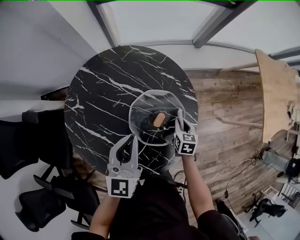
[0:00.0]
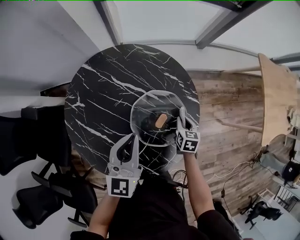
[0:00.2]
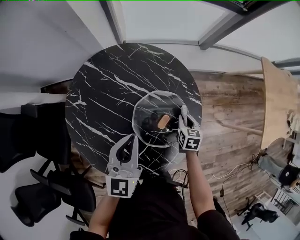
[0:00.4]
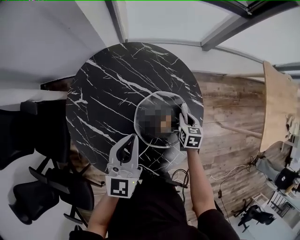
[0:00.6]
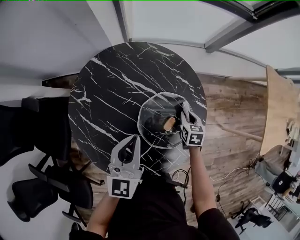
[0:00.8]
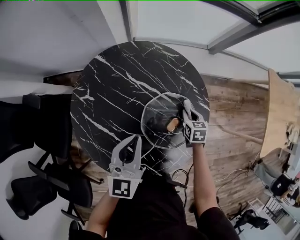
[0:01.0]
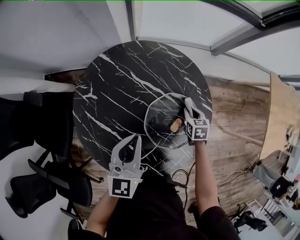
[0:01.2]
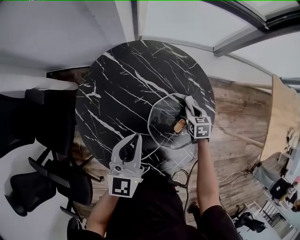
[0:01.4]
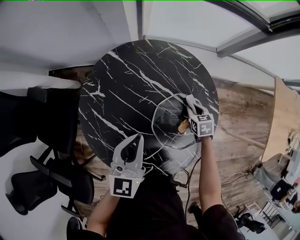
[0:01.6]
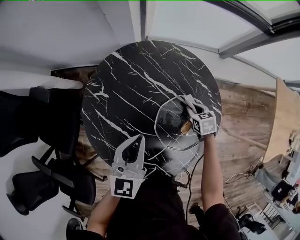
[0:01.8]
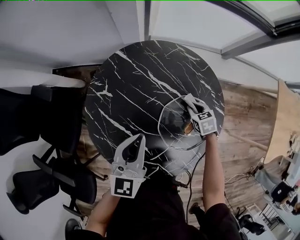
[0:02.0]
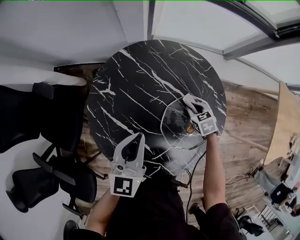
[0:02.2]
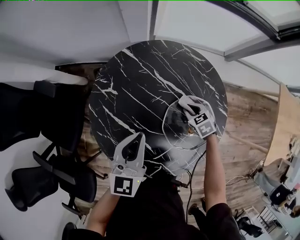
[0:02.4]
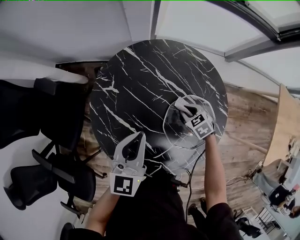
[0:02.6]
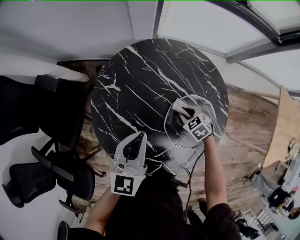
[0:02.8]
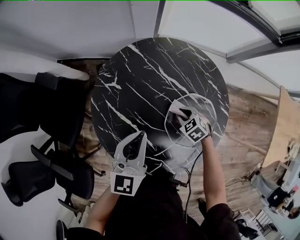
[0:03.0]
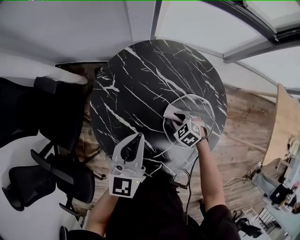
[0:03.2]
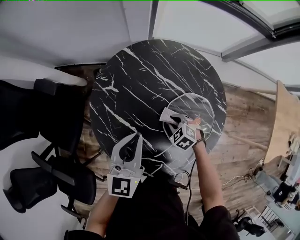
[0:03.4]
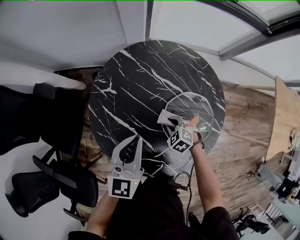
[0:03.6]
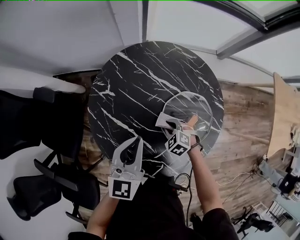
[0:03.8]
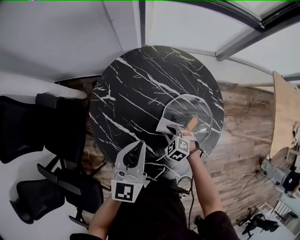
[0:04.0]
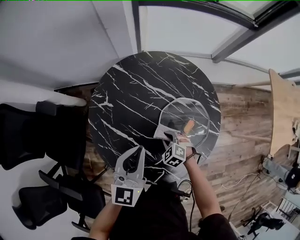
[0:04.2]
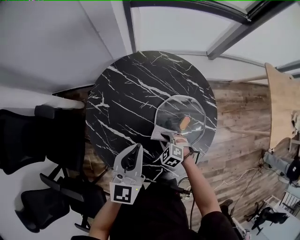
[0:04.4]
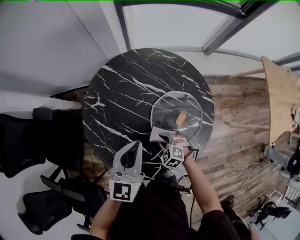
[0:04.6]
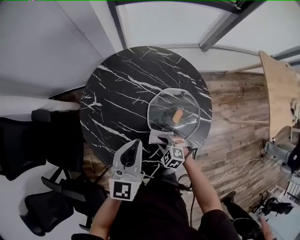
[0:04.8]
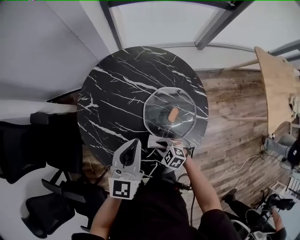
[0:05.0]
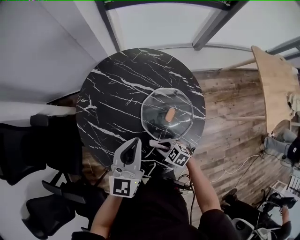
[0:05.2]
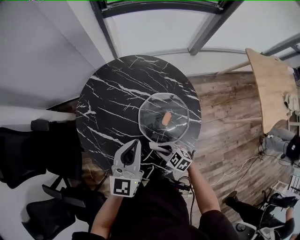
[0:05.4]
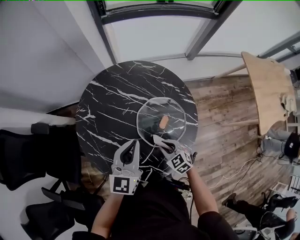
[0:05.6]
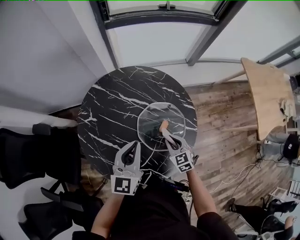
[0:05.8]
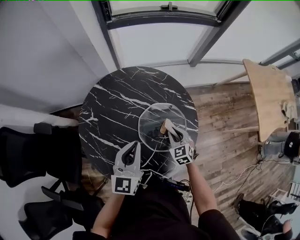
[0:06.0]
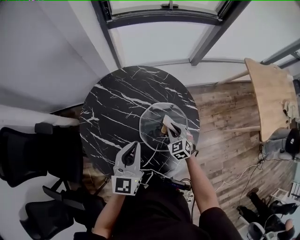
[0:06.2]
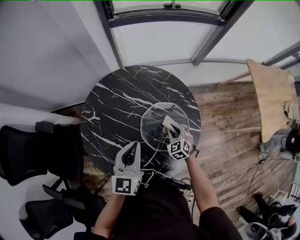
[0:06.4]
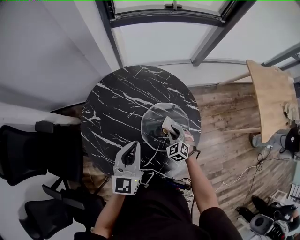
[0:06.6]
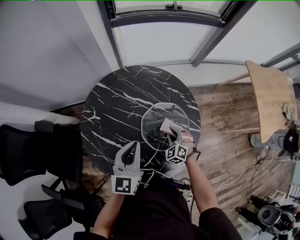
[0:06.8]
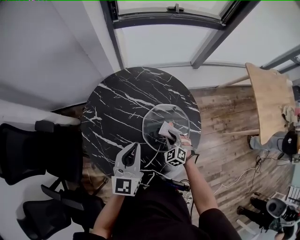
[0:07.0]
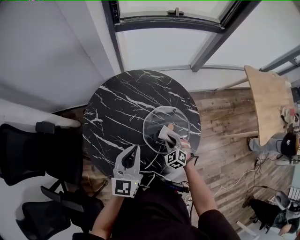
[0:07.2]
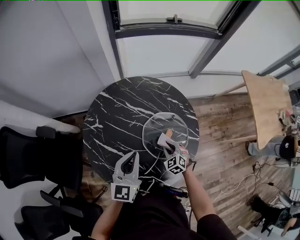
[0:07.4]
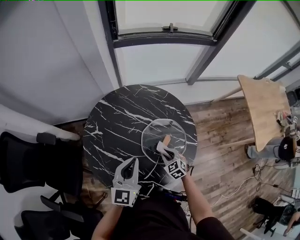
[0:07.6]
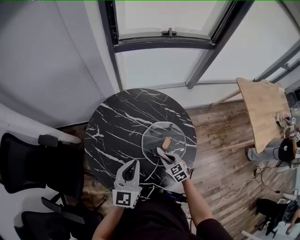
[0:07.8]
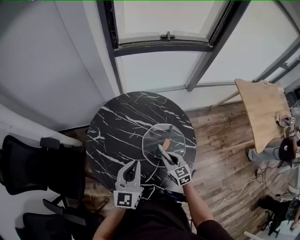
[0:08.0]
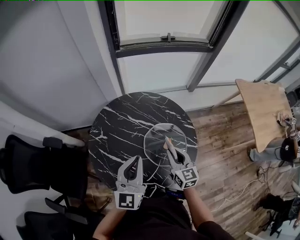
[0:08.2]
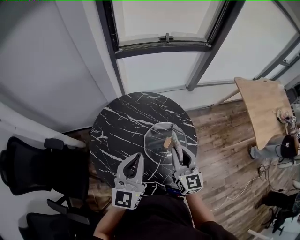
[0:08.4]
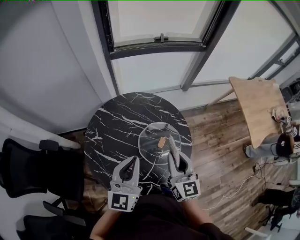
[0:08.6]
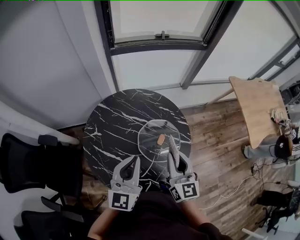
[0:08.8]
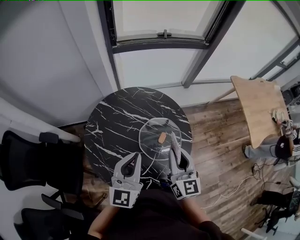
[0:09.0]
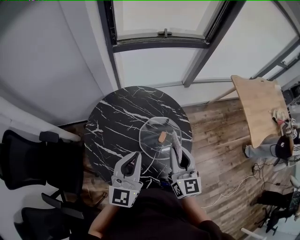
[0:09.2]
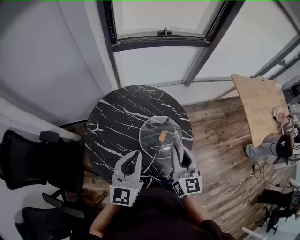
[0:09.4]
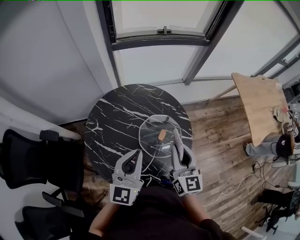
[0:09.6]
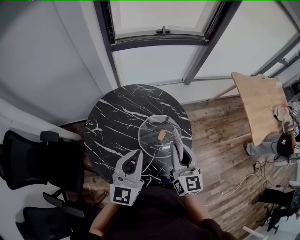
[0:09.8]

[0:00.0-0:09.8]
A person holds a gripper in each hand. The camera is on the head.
0:00.0 to 0:01.4: The left gripper heads to the left, covering about 10 cm, while the right gripper moves forward and to the left, about 10 cm, and swivels some 20 degrees.
0:01.4 to 0:02.8: The left gripper shifts about 5 cm to the left, while the right gripper moves to the left, about 15 cm, and swivels roughly 40 degrees.
0:02.8 to 0:04.2: The left gripper moves roughly 5 cm, while the right gripper heads backward and to the left, covering about 10 cm.
0:04.2 to 0:05.6: The left gripper heads to the right, covering roughly 10 cm. The right gripper moves upward, to the right and backward, about 15 cm, and swivels approximately 30 degrees.
0:05.6 to 0:07.0: The right gripper travels forward by approximately 10 cm, and swivels some 30 degrees.
0:07.0 to 0:08.4: The right gripper shifts approximately 30 cm upward, and tips its fingers upward by approximately 40 degrees, while the left gripper moves upward, some 15 cm.
0:08.4 to 0:09.8: There are only small adjustments of the grippers.

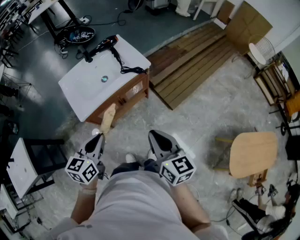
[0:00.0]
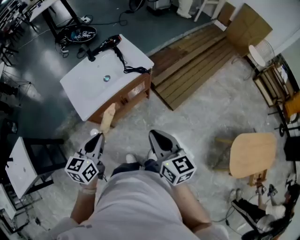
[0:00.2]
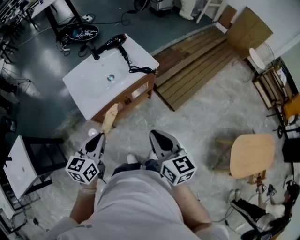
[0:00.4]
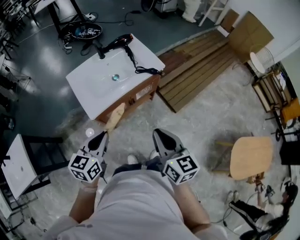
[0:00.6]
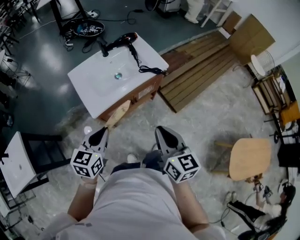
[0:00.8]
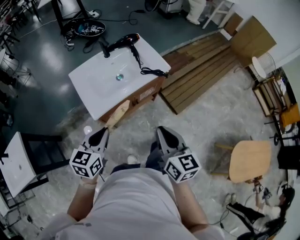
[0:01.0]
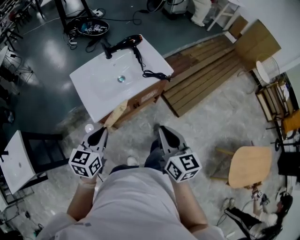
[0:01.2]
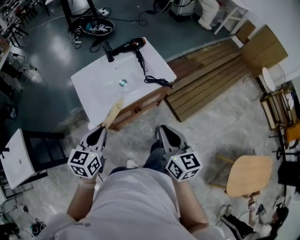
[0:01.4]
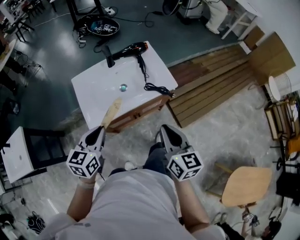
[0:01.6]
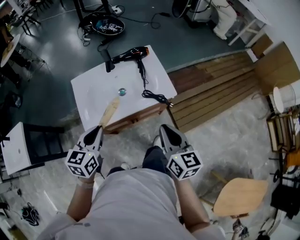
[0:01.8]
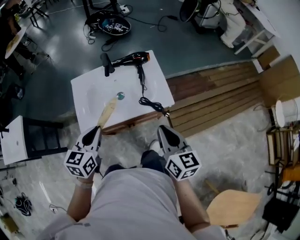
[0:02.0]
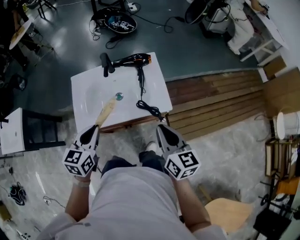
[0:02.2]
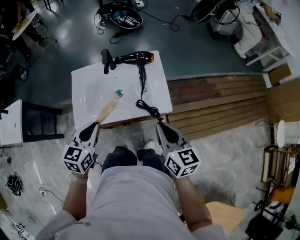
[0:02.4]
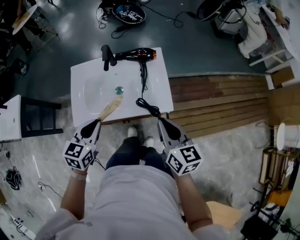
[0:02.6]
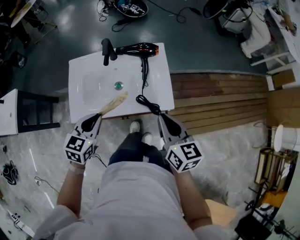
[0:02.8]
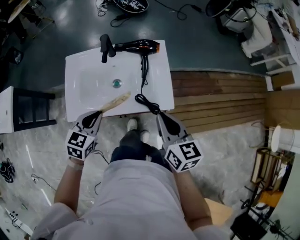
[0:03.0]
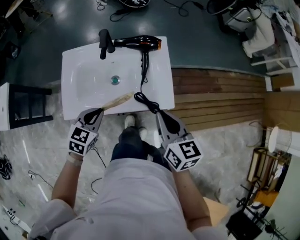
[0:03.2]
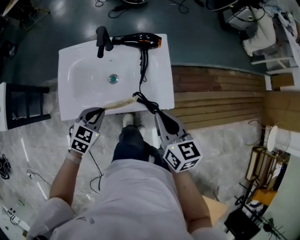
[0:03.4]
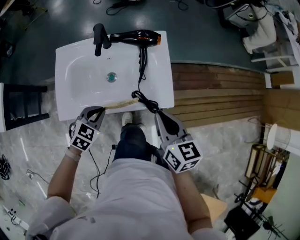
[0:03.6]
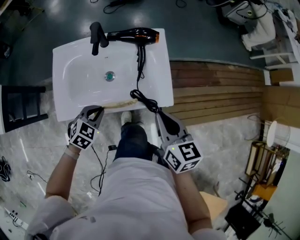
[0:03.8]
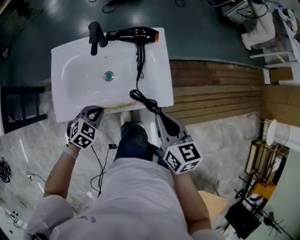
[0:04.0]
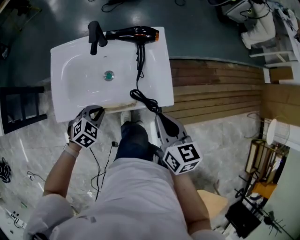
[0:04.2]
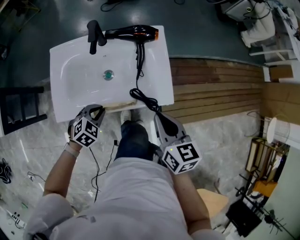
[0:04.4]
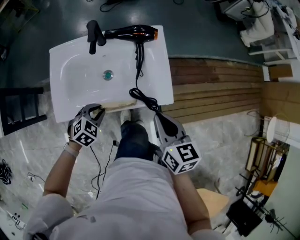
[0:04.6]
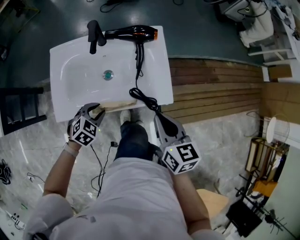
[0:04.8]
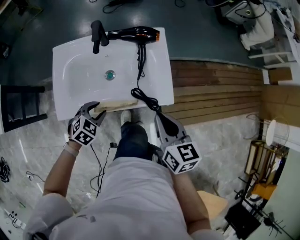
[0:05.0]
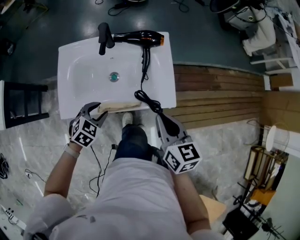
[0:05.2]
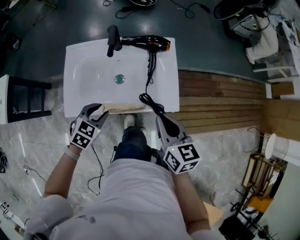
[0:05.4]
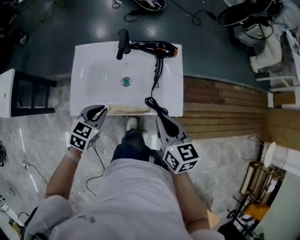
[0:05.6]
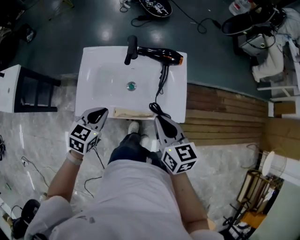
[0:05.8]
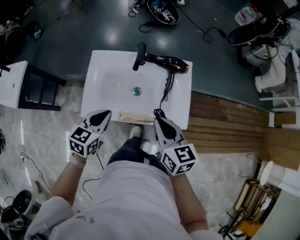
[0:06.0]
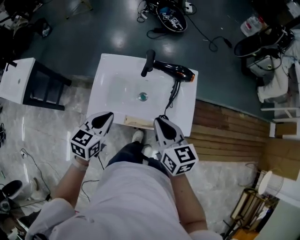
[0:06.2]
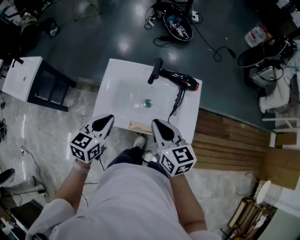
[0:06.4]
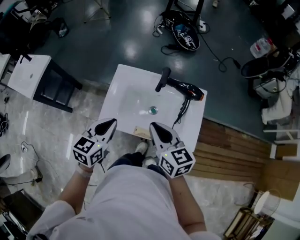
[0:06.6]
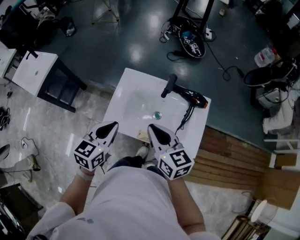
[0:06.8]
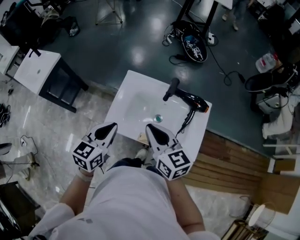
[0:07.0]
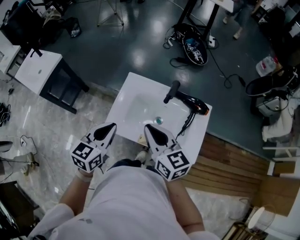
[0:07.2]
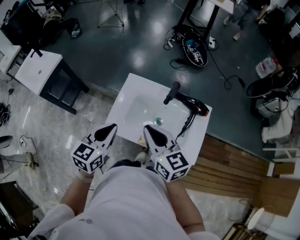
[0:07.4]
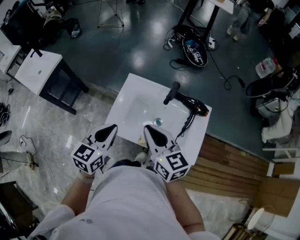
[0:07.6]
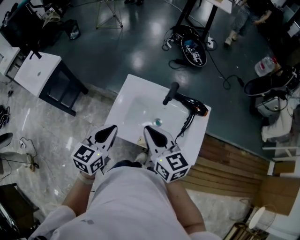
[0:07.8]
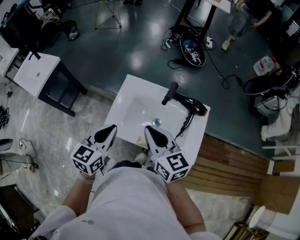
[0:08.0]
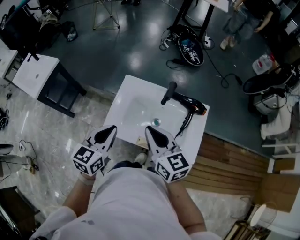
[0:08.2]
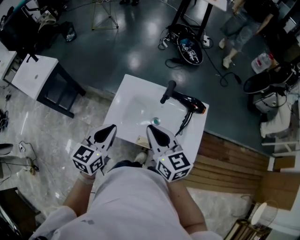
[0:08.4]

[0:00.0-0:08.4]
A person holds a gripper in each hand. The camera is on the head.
0:00.0 to 0:01.4: The left gripper travels to the left and forward by roughly 15 cm, while the right gripper is displaced forward and to the left by roughly 15 cm.
0:01.4 to 0:02.8: Both grippers move forward and to the right, approximately 25 cm. The right gripper swivels about 30 degrees.
0:02.8 to 0:04.2: The left gripper shifts approximately 20 cm downward, and swivels approximately 40 degrees. Meanwhile the right gripper goes about 5 cm downward.
0:04.2 to 0:05.6: The right gripper heads to the left, covering some 5 cm. Meanwhile the left gripper moves upward, about 10 cm, swivels roughly 30 degrees, and opens and closes again.
0:05.6 to 0:07.0: The left gripper is displaced upward by approximately 15 cm, and rotates approximately 30 degrees. Meanwhile the right gripper ends up approximately 25 cm from where it was, and changes its angle by approximately 30 degrees.
0:07.0 to 0:08.4: The grippers make only small movements.

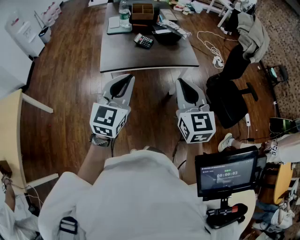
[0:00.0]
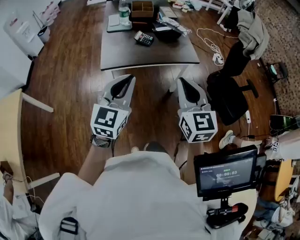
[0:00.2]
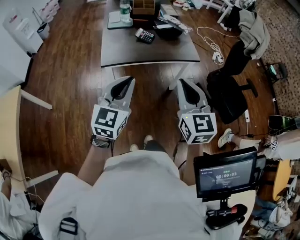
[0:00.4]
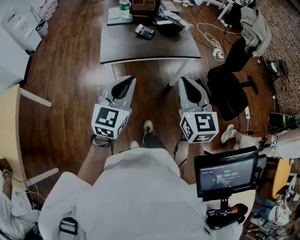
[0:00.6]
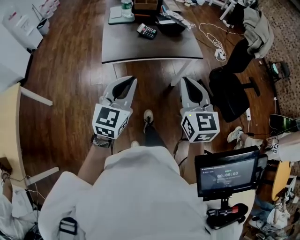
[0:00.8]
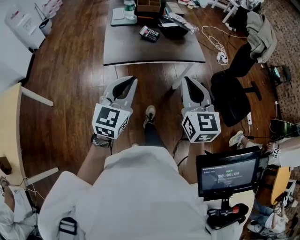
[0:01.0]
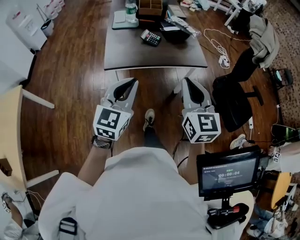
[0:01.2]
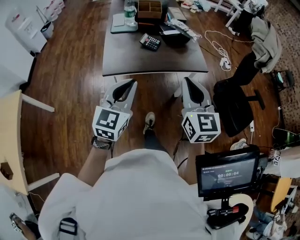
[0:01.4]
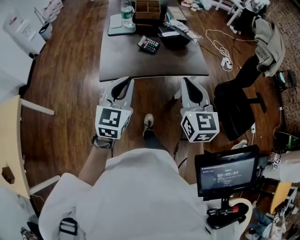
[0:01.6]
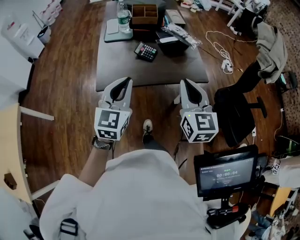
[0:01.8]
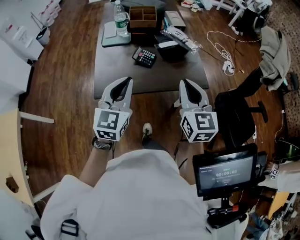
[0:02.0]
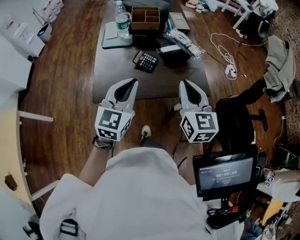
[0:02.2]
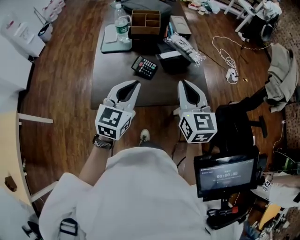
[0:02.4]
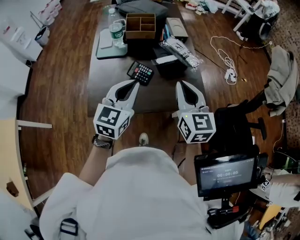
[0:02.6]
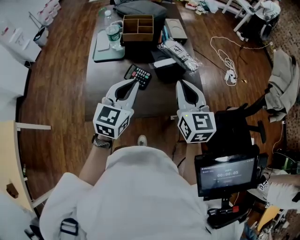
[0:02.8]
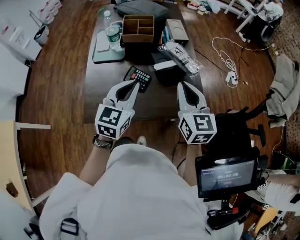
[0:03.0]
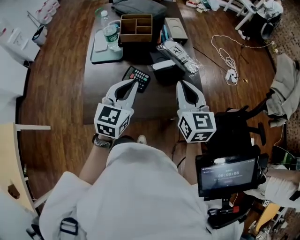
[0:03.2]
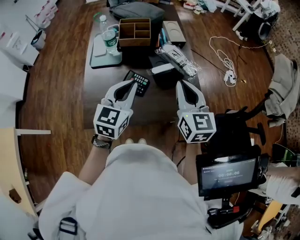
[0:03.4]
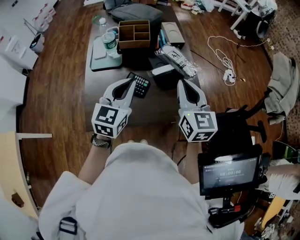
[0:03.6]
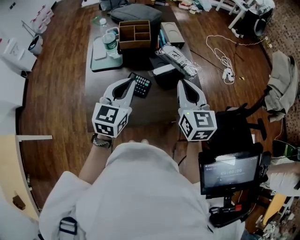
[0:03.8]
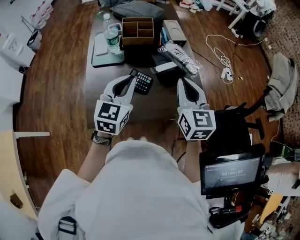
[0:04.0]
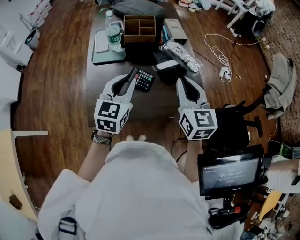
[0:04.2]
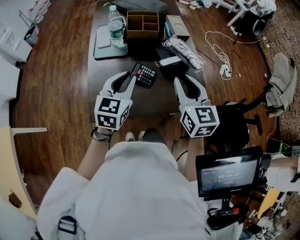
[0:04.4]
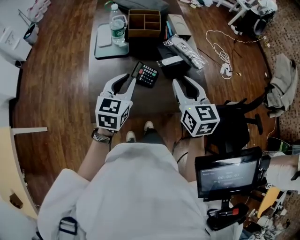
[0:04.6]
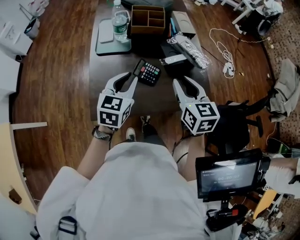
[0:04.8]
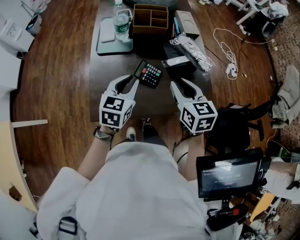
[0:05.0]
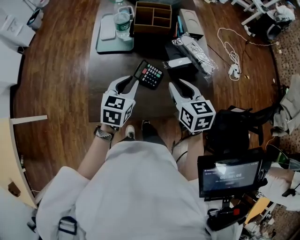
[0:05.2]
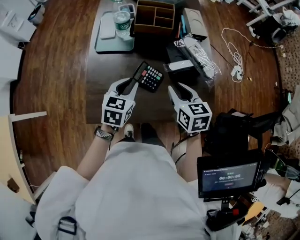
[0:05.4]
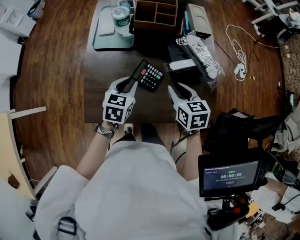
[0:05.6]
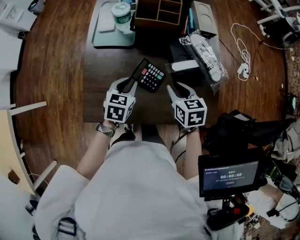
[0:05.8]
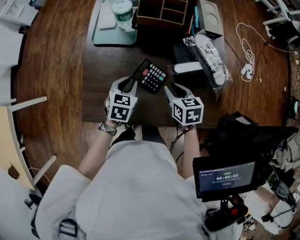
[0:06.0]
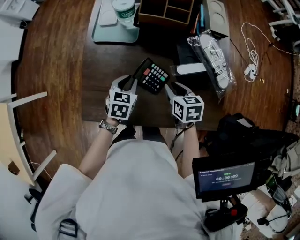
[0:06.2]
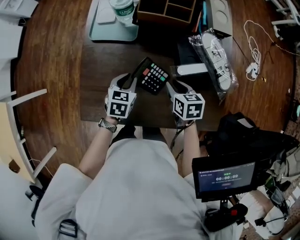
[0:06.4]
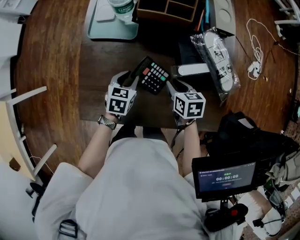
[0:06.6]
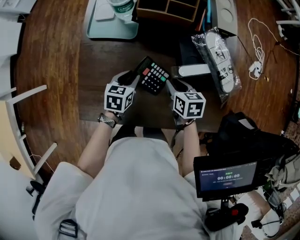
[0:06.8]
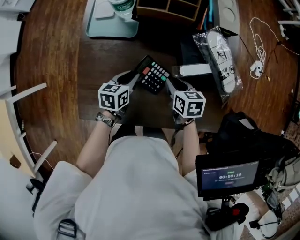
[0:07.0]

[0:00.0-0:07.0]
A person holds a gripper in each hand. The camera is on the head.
0:00.0 to 0:01.4: Both grippers move forward, some 5 cm.
0:01.4 to 0:02.8: The grippers both shift forward by some 35 cm.
0:02.8 to 0:04.2: The left gripper is displaced to the left by about 5 cm.
0:04.2 to 0:05.6: The left gripper is displaced downward by some 20 cm, and rotates approximately 30 degrees. Meanwhile the right gripper goes approximately 20 cm downward and forward, turns by approximately 30 degrees, and opens up.
0:05.6 to 0:07.0: The grippers both shift downward by about 15 cm. The left gripper changes its angle by some 20 degrees.
